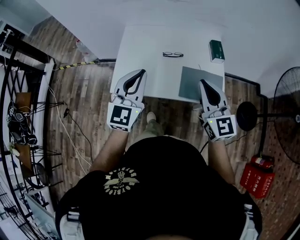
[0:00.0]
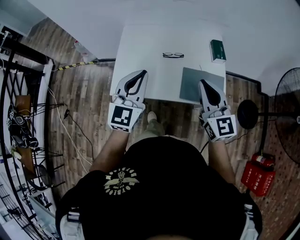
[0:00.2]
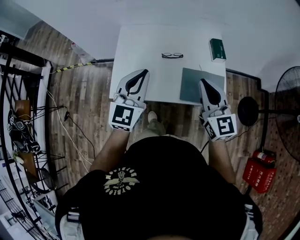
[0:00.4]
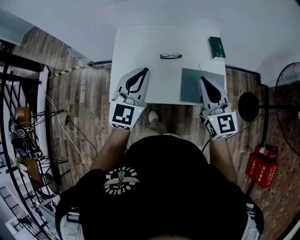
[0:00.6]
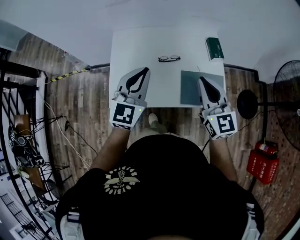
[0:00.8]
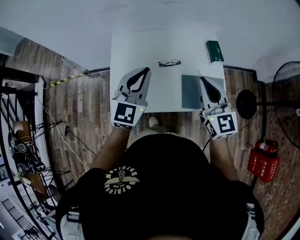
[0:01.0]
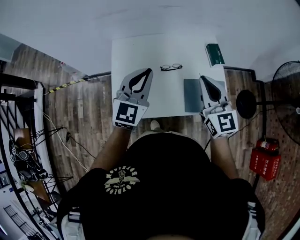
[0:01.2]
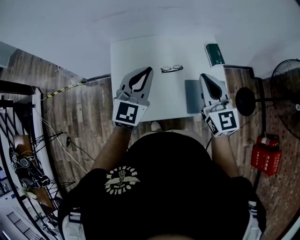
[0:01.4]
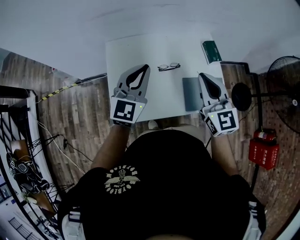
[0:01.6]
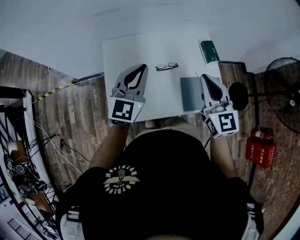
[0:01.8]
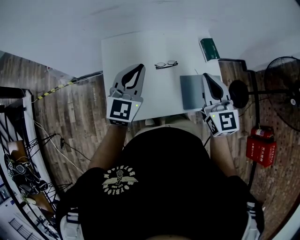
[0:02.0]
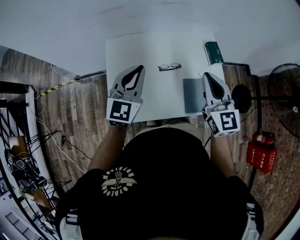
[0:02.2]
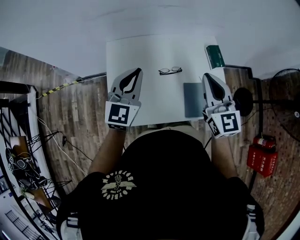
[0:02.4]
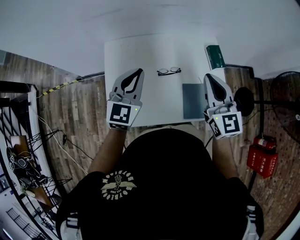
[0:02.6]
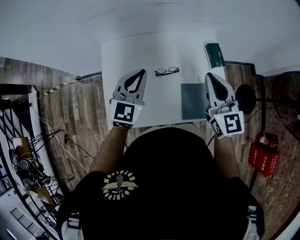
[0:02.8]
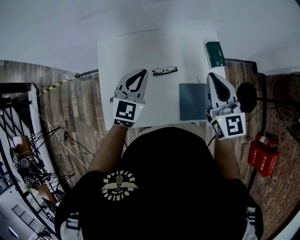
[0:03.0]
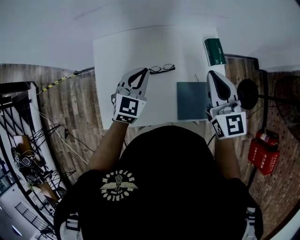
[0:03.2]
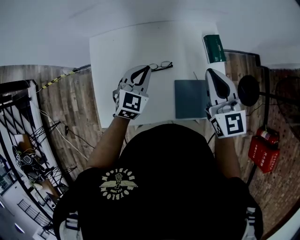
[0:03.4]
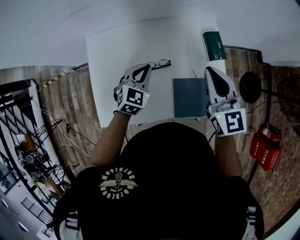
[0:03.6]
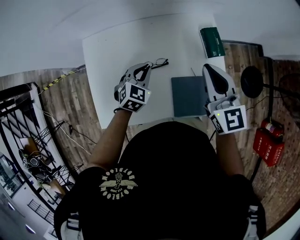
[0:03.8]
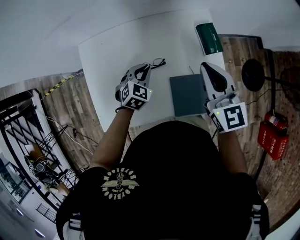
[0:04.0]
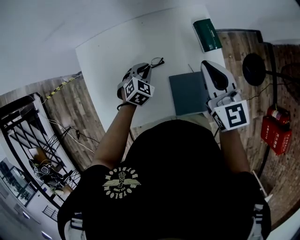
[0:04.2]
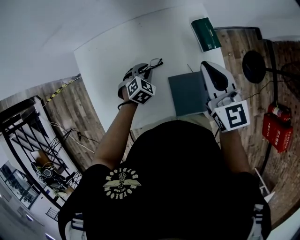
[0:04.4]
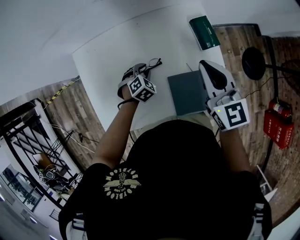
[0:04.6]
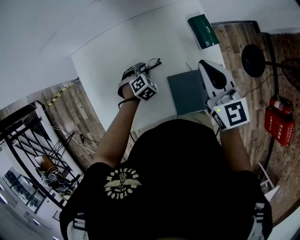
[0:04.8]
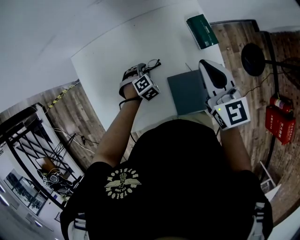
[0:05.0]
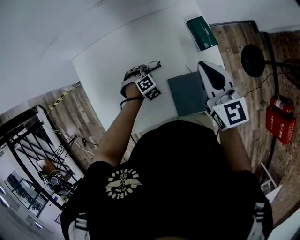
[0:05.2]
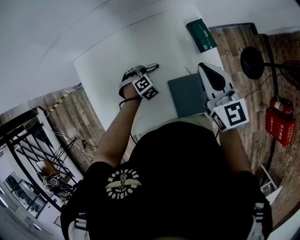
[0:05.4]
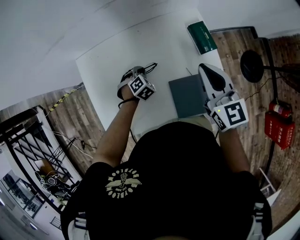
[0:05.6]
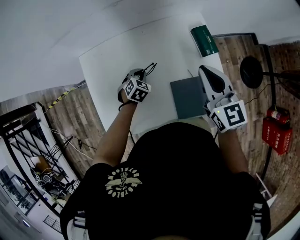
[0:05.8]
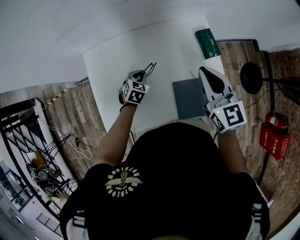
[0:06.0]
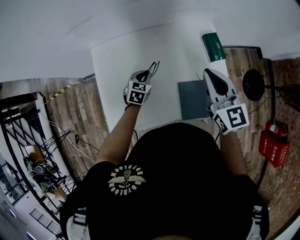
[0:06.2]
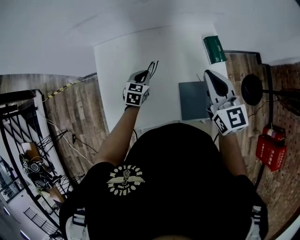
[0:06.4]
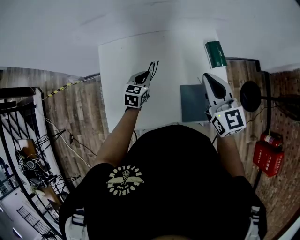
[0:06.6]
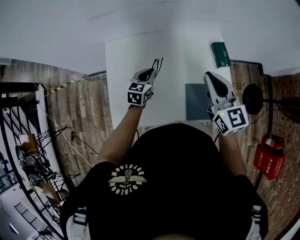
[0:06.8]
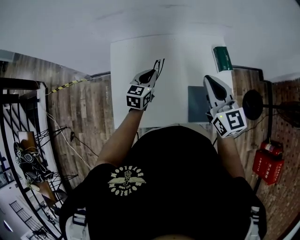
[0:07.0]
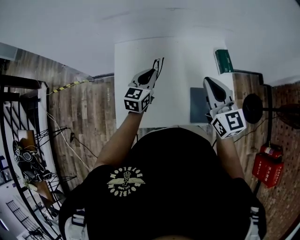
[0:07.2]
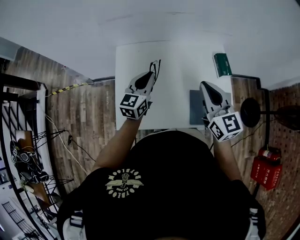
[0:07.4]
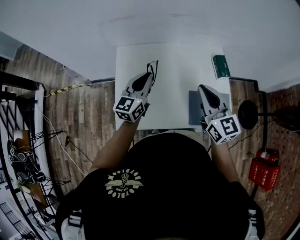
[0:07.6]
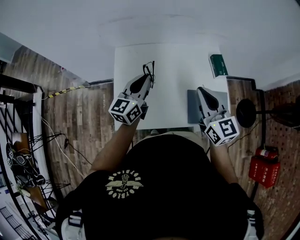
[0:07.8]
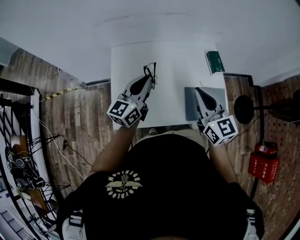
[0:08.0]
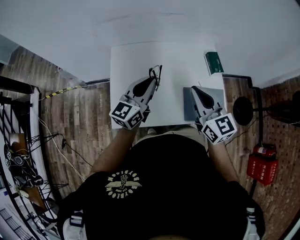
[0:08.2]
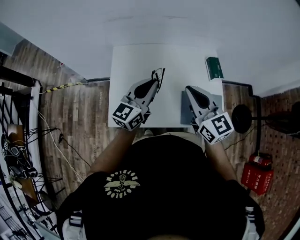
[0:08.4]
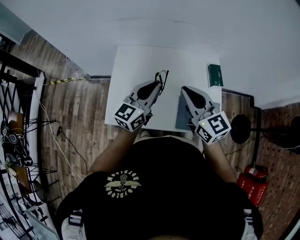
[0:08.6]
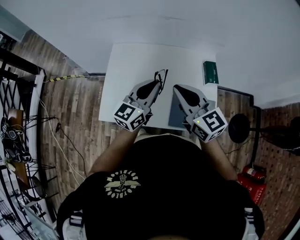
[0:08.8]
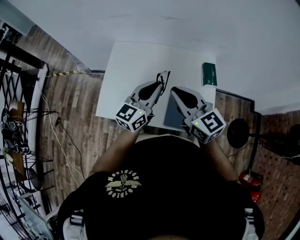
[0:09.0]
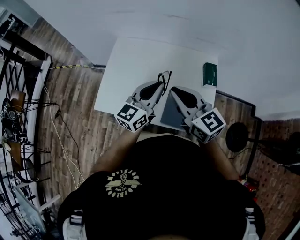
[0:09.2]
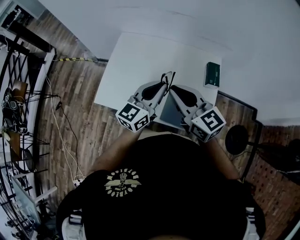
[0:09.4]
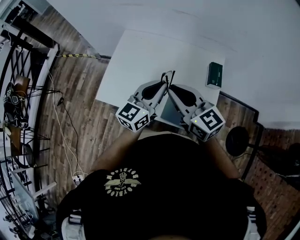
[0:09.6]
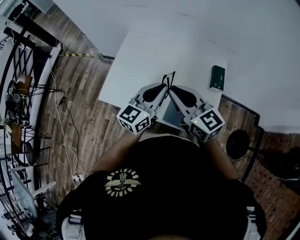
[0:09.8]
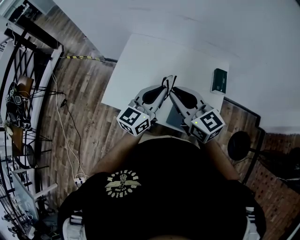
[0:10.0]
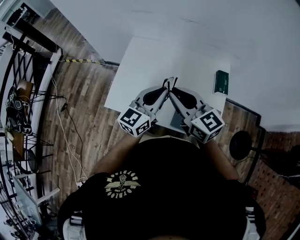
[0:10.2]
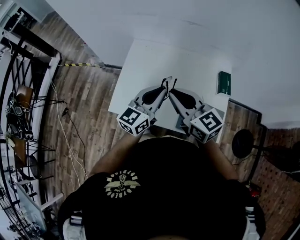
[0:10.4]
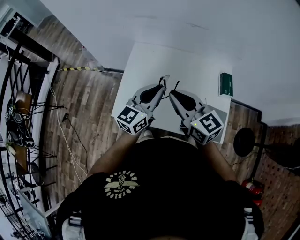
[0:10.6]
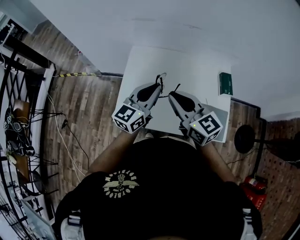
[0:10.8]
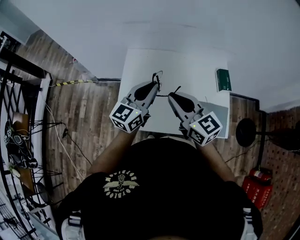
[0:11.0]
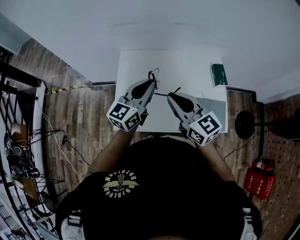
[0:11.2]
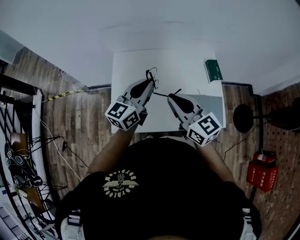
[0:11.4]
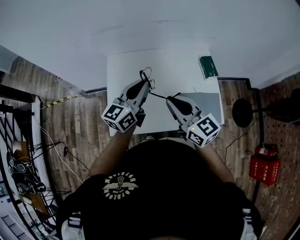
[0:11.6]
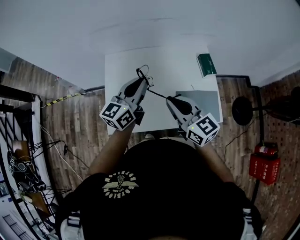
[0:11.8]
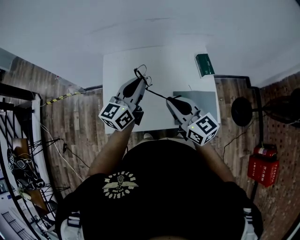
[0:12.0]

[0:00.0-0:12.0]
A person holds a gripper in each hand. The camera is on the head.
0:00.0 to 0:01.6: The left gripper heads forward, covering approximately 20 cm. The right gripper goes approximately 20 cm forward and to the left.
0:01.6 to 0:03.0: The right gripper is displaced forward and to the right by approximately 15 cm. The left gripper shifts roughly 15 cm downward, forward and to the right.
0:03.0 to 0:04.4: The left gripper travels downward by some 25 cm, and tips its fingers downward by some 40 degrees; the right gripper heads downward, to the right and forward, covering approximately 15 cm.
0:04.4 to 0:06.0: The left gripper shifts about 5 cm to the left.
0:06.0 to 0:07.6: The left gripper heads upward, to the left and backward, covering some 30 cm, and points its fingers approximately 50 degrees further upward; the right gripper moves to the left, backward and upward, roughly 20 cm.
0:07.6 to 0:09.0: The right gripper changes place by roughly 5 cm, and changes its angle by approximately 30 degrees. Meanwhile the left gripper shifts approximately 20 cm to the right and backward.
0:09.0 to 0:10.4: Both grippers move to the left, roughly 10 cm.
0:10.4 to 0:12.0: The right gripper travels to the left and back again, approximately 5 cm each way; the left gripper shifts approximately 5 cm forward, and moves some 10 cm to the left and comes back.

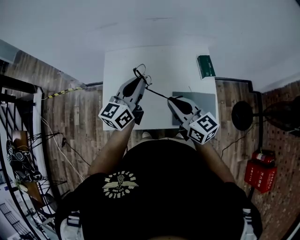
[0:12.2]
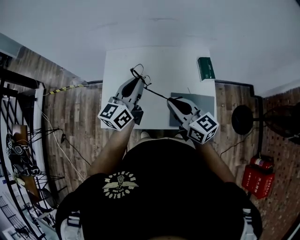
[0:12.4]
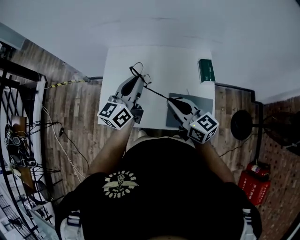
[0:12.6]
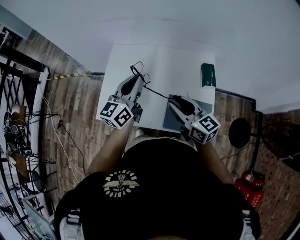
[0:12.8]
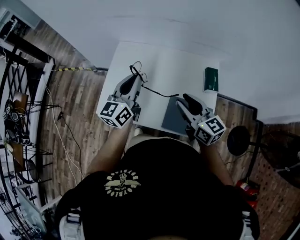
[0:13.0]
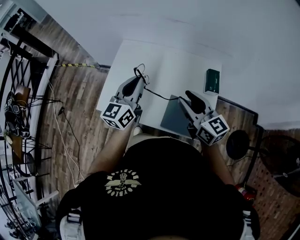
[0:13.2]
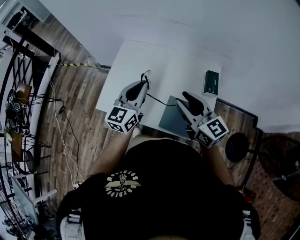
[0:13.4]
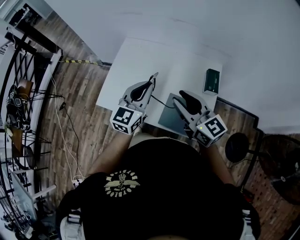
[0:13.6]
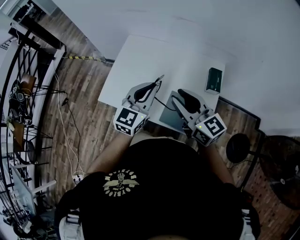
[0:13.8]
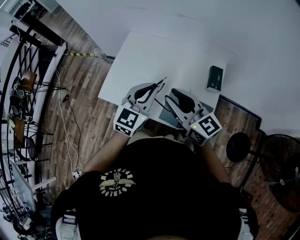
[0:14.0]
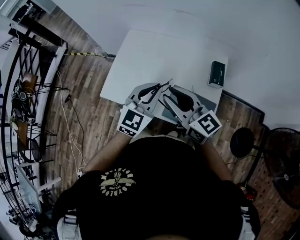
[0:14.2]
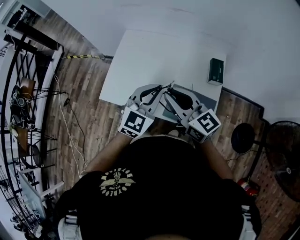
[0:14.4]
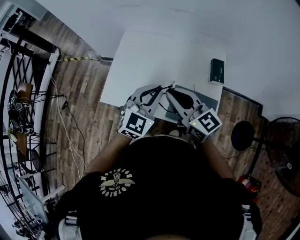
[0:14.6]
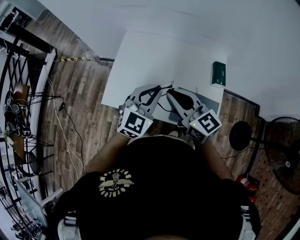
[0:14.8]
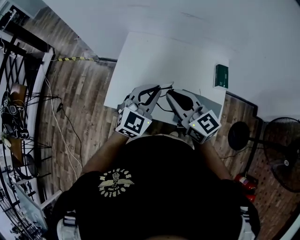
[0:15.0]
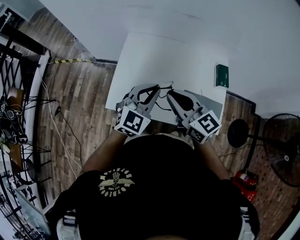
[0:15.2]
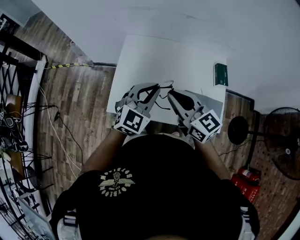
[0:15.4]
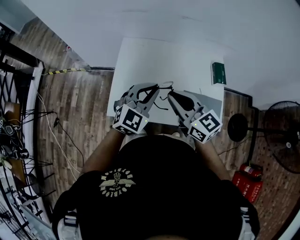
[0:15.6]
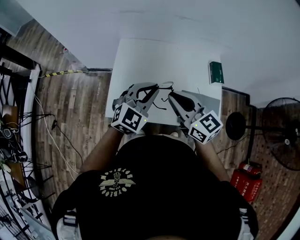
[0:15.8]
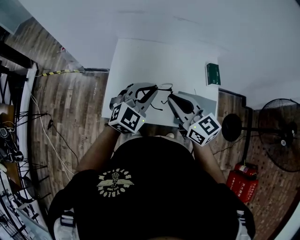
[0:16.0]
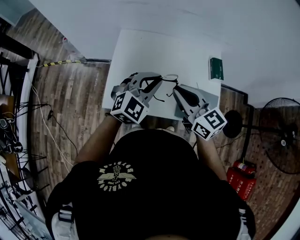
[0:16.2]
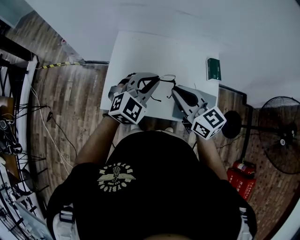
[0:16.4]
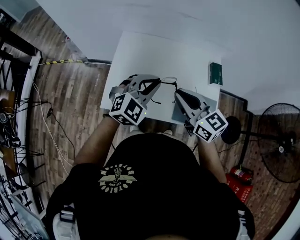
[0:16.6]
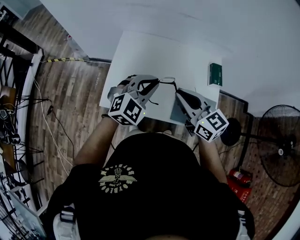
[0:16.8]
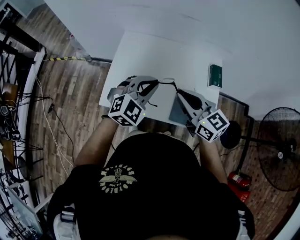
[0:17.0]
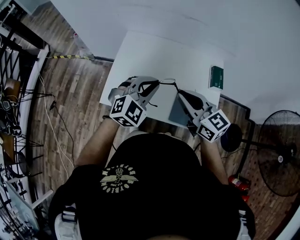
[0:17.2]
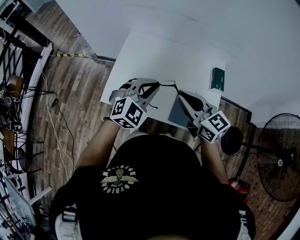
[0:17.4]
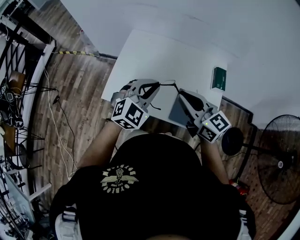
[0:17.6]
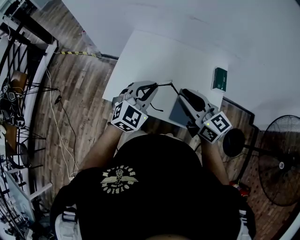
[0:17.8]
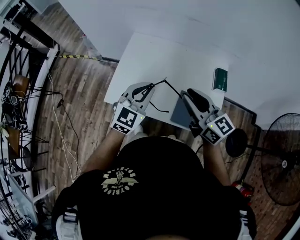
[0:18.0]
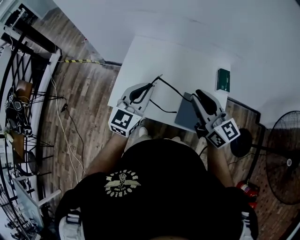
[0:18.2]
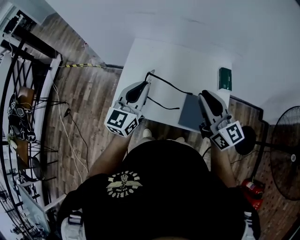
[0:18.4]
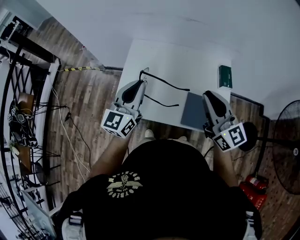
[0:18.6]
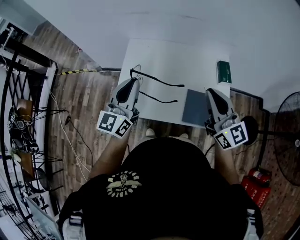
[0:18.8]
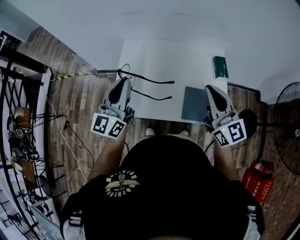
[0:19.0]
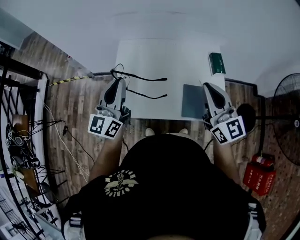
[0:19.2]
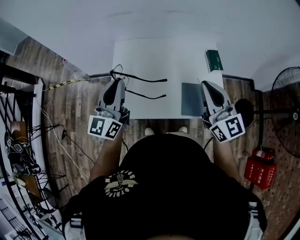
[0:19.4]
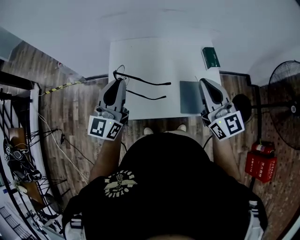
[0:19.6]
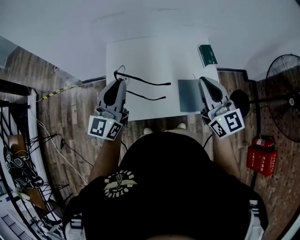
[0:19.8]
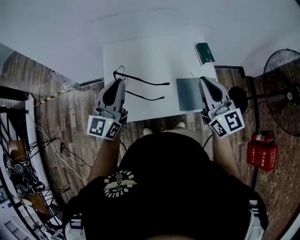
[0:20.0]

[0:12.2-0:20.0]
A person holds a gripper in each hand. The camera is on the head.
0:12.2 to 0:13.8: The left gripper travels backward and to the right by approximately 15 cm, and changes its angle by roughly 30 degrees. The right gripper travels to the right and upward by roughly 10 cm, swivels some 20 degrees, and opens its fingers.
0:13.8 to 0:15.4: The two grippers go approximately 15 cm to the left. The left gripper turns by approximately 30 degrees, while the right gripper closes up.
0:15.4 to 0:16.8: The right gripper is displaced to the right by about 5 cm.
0:16.8 to 0:18.4: The left gripper heads to the left, covering some 5 cm, and changes its angle by some 50 degrees, while the right gripper shifts some 10 cm to the right and upward.
0:18.4 to 0:20.0: The left gripper travels to the left by approximately 10 cm. The right gripper swivels roughly 30 degrees.

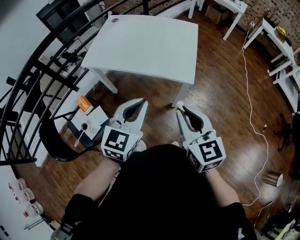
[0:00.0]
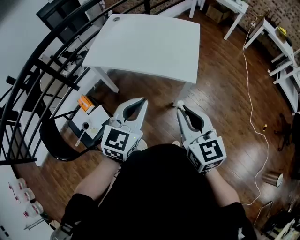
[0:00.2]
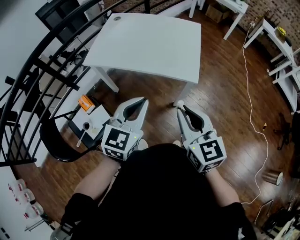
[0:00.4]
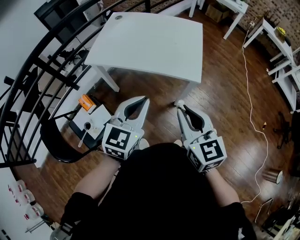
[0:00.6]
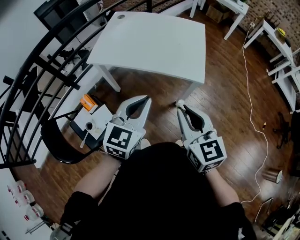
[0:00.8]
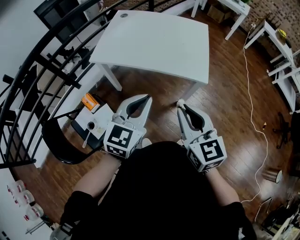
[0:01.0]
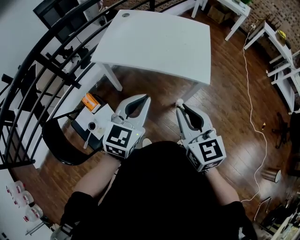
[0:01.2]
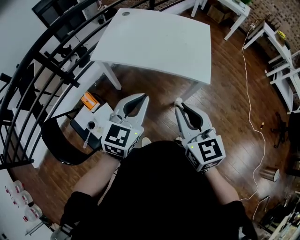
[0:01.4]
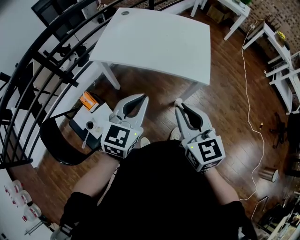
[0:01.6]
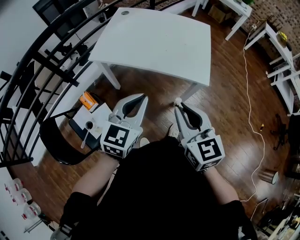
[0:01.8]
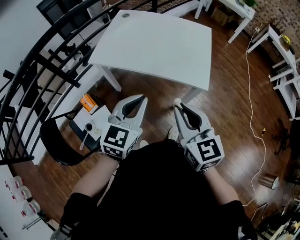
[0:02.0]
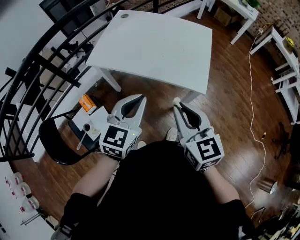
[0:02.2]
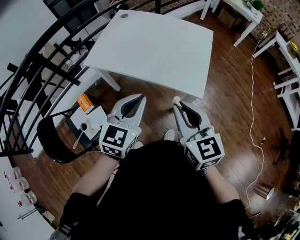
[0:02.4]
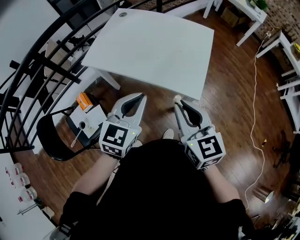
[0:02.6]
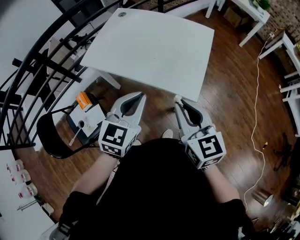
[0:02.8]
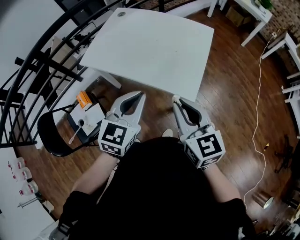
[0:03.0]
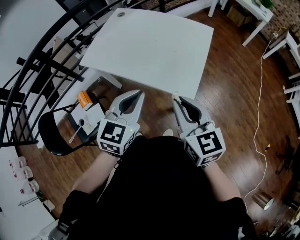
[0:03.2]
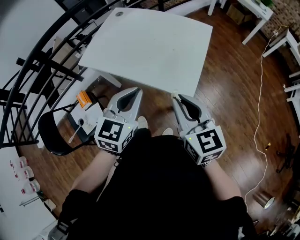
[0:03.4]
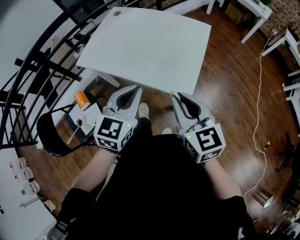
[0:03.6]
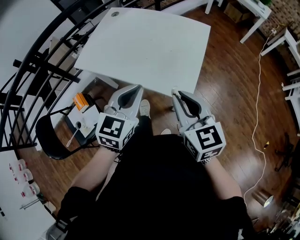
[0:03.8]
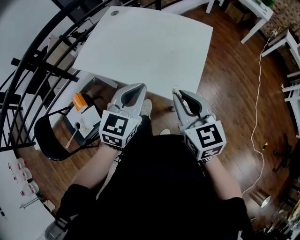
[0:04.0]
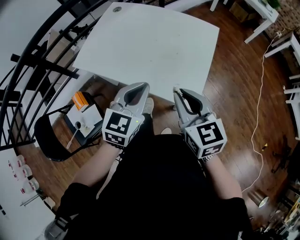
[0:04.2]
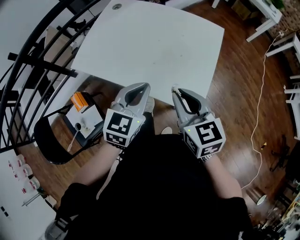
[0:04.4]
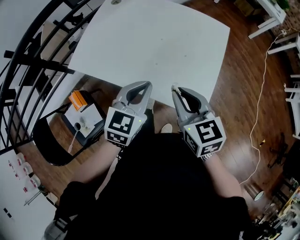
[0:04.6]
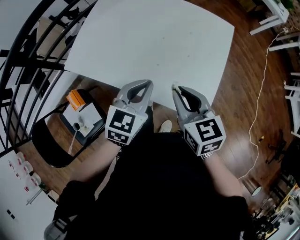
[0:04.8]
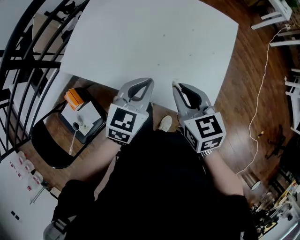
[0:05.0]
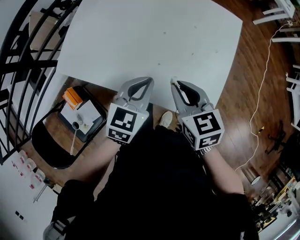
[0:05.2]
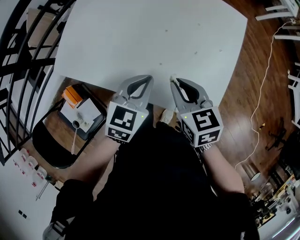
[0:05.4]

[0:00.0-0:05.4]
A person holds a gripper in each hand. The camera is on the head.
0:00.0 to 0:01.4: The grippers both shift to the left by about 15 cm.
0:01.4 to 0:02.8: Both grippers travel together to the right and forward, roughly 20 cm.
0:02.8 to 0:04.0: Both grippers travel together forward, approximately 10 cm.
0:04.0 to 0:05.4: The right gripper travels forward, downward and to the left by about 25 cm, and changes its angle by some 30 degrees. The left gripper moves forward and downward, about 25 cm.
